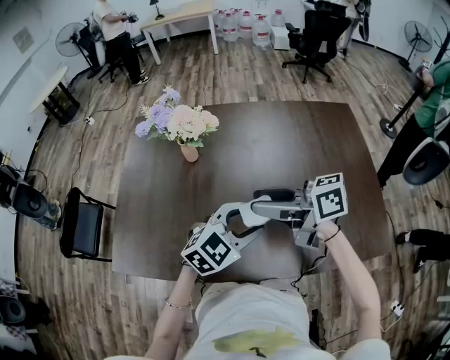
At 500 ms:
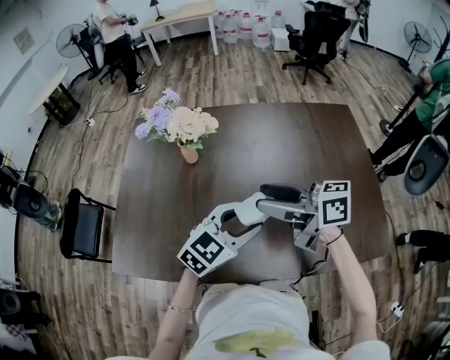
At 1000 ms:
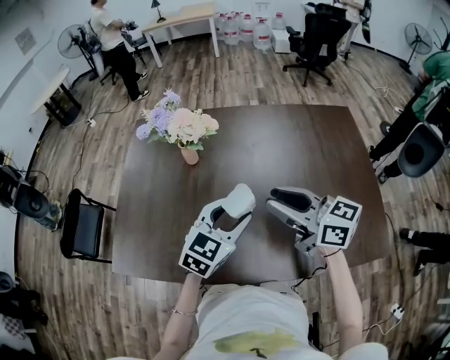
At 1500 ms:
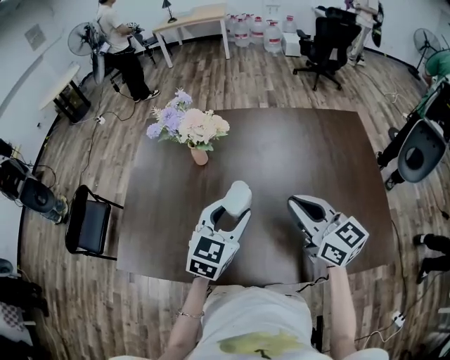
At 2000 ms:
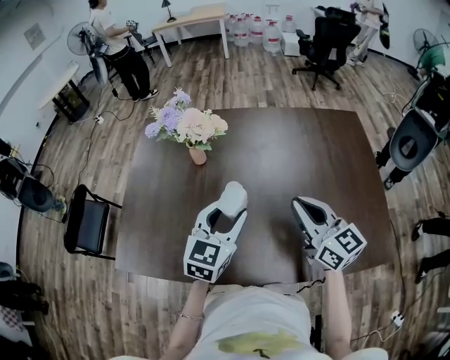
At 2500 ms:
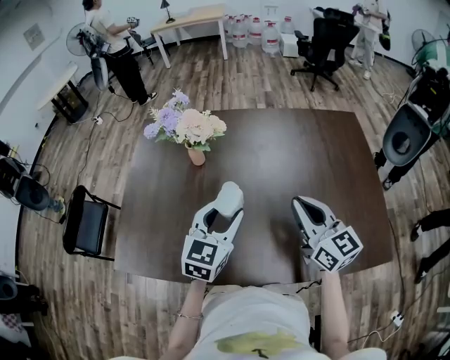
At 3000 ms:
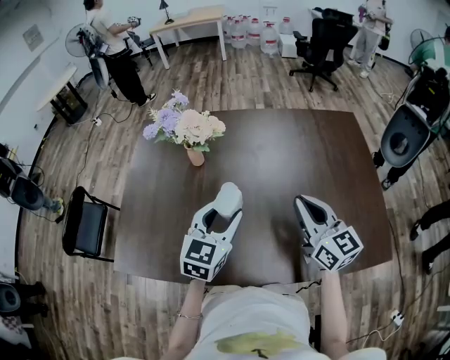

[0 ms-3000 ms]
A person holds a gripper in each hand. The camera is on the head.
0 ms to 1500 ms: The left gripper changes place by some 10 cm, and swivels about 30 degrees. The right gripper shifts by some 10 cm, turns by some 50 degrees, and closes up.
1500 ms to 3000 ms: The grippers move only a little.

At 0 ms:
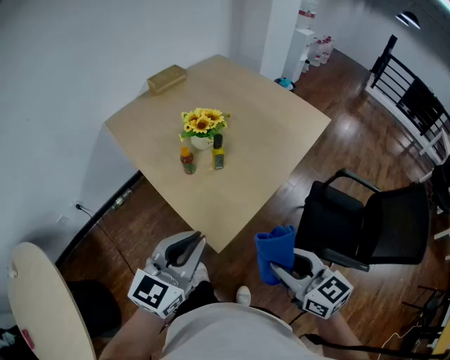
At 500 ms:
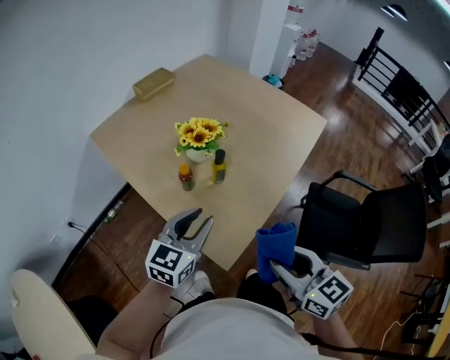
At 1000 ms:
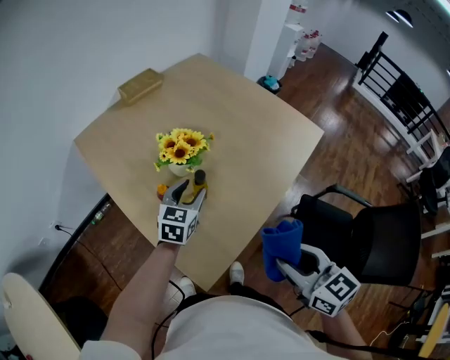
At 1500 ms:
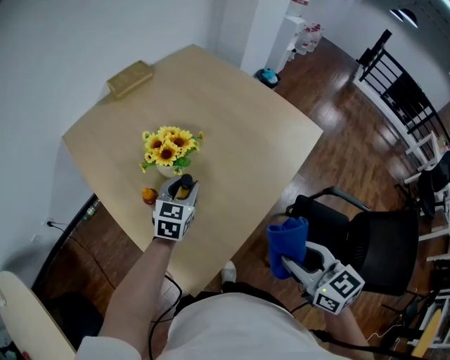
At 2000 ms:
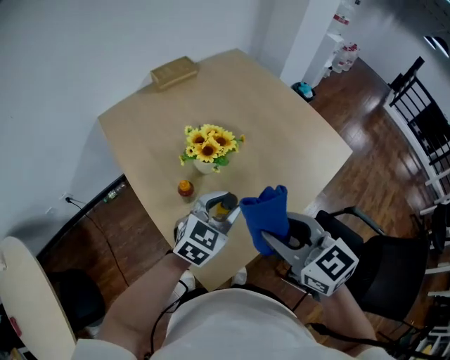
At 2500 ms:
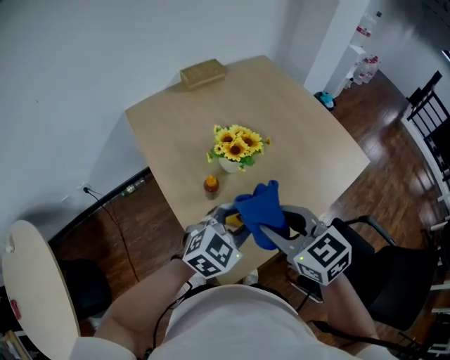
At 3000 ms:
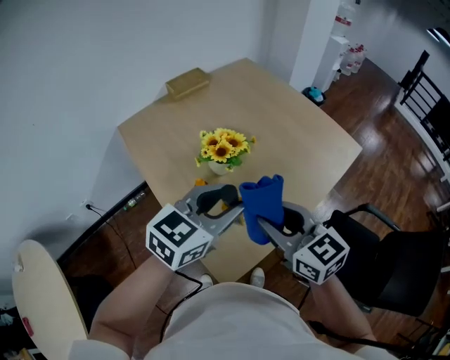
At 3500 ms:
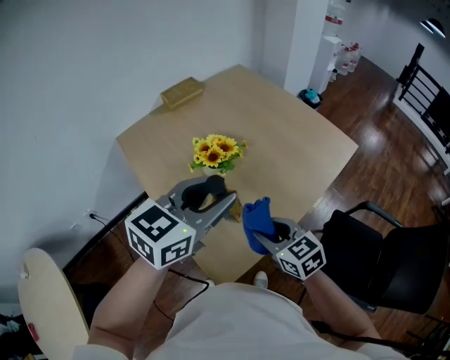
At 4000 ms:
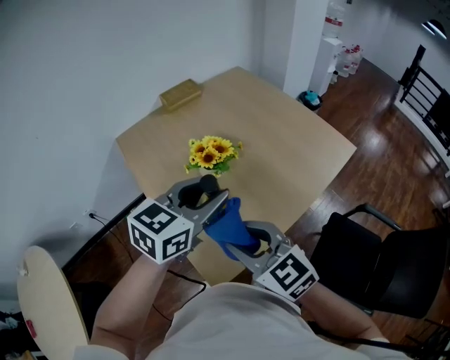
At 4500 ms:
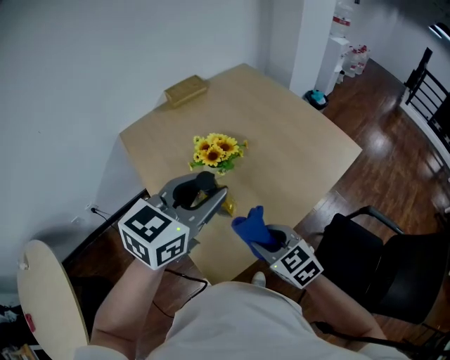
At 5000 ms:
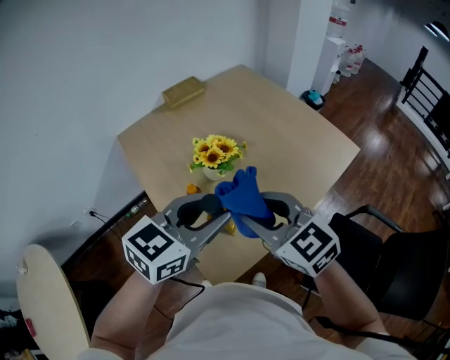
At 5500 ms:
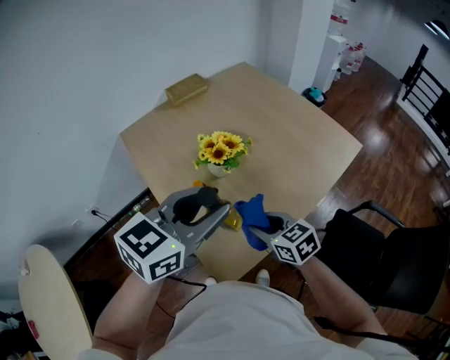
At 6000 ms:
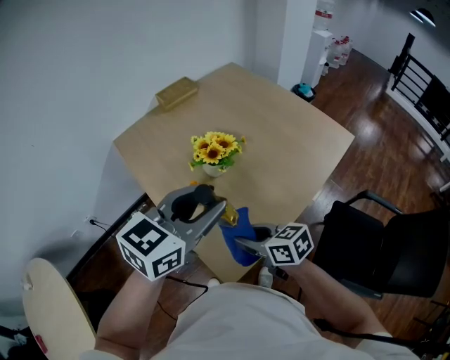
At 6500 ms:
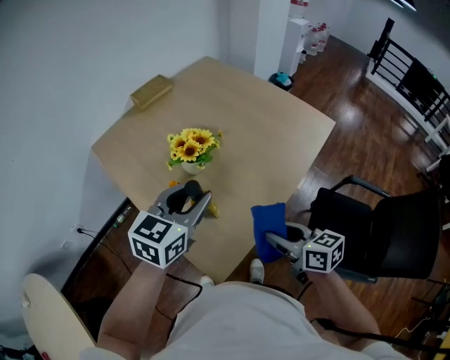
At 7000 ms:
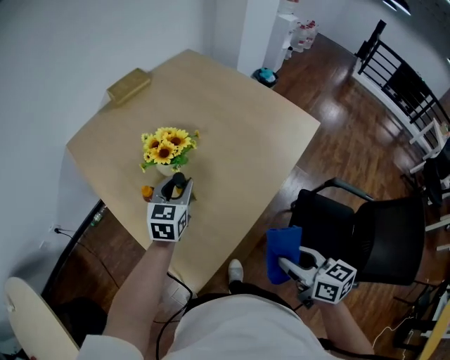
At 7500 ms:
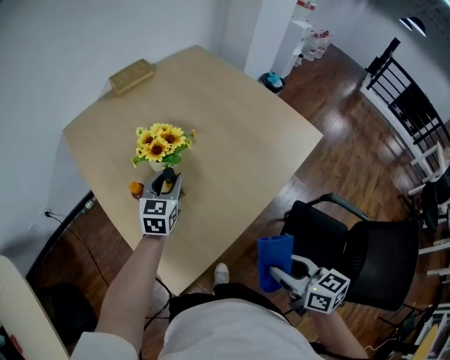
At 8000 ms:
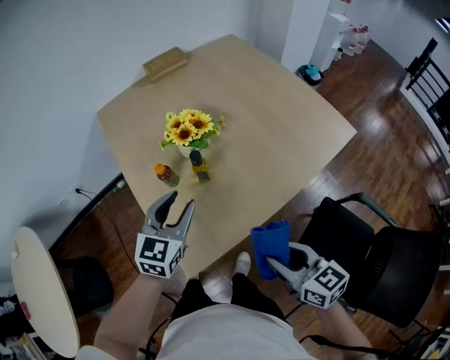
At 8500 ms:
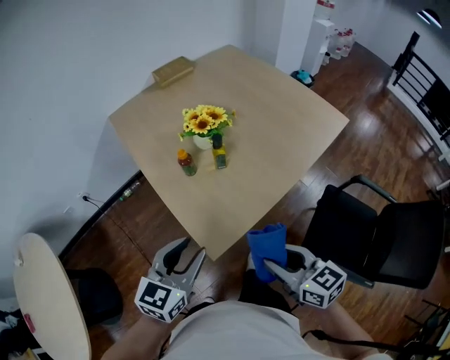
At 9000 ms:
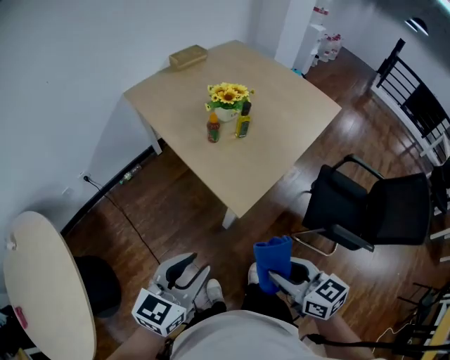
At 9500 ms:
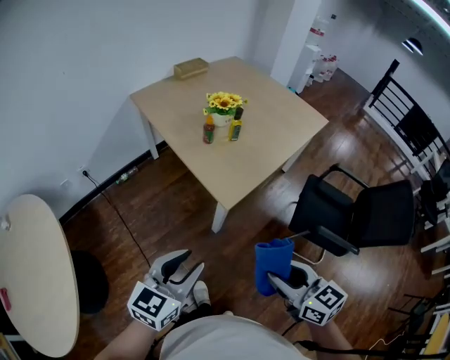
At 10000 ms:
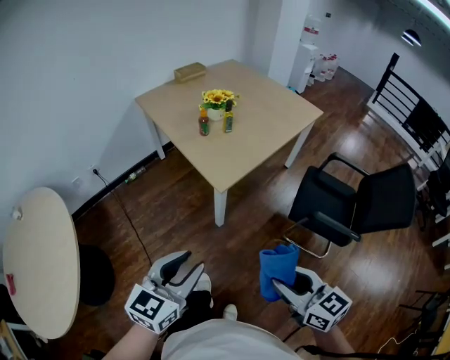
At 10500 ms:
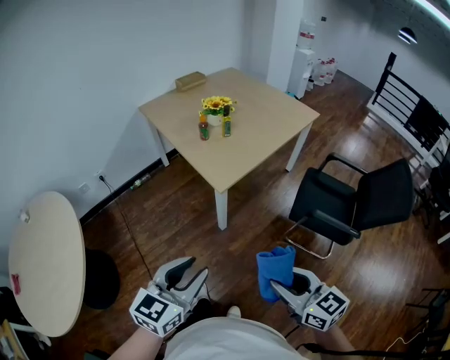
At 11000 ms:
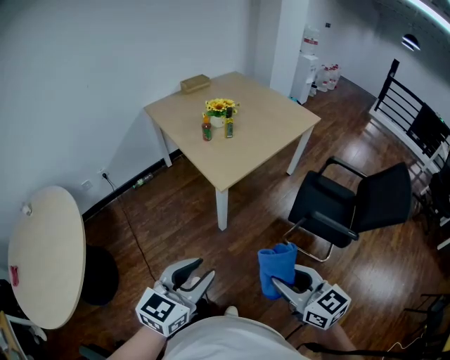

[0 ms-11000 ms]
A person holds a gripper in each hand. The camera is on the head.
0 ms to 2000 ms: Both grippers move forward, approximately 30 cm. The left gripper opens.
2000 ms to 3500 ms: The right gripper moves downward, approximately 10 cm; the left gripper is displaced upward by about 20 cm.
3500 ms to 5500 ms: The right gripper goes up and down, roughly 15 cm each way, reversing 3 times.
5500 ms to 7500 ms: The left gripper is displaced downward and forward by some 30 cm, and changes its angle by some 30 degrees. The right gripper moves to the right and backward, approximately 20 cm, and changes its angle by approximately 20 degrees.
7500 ms to 9000 ms: The right gripper shifts some 40 cm to the left and backward, while the left gripper goes approximately 60 cm backward and to the left, and turns by about 20 degrees.
9000 ms to 11000 ms: Both grippers move backward and to the right, some 30 cm.

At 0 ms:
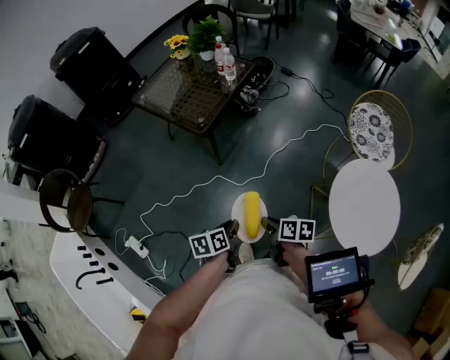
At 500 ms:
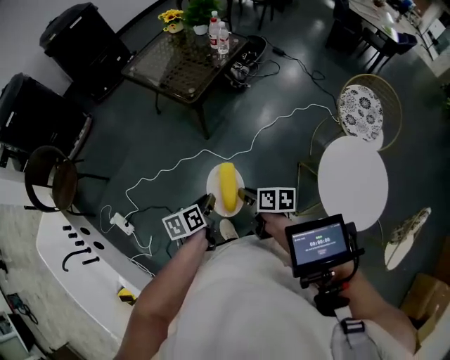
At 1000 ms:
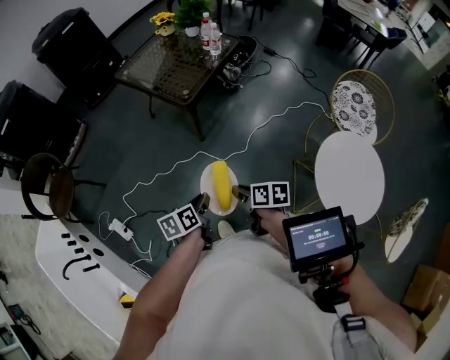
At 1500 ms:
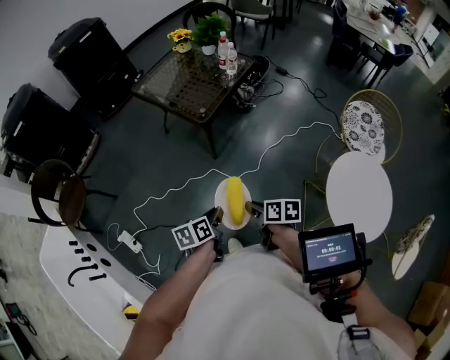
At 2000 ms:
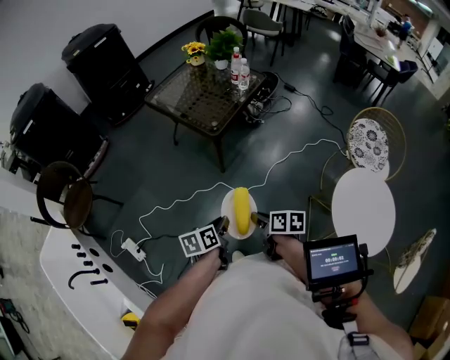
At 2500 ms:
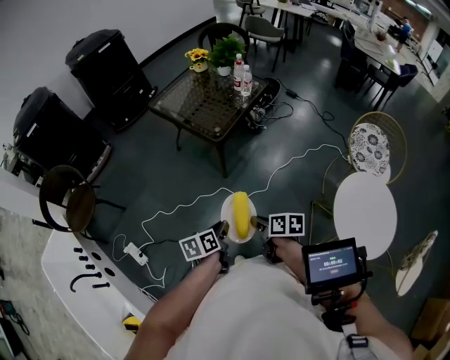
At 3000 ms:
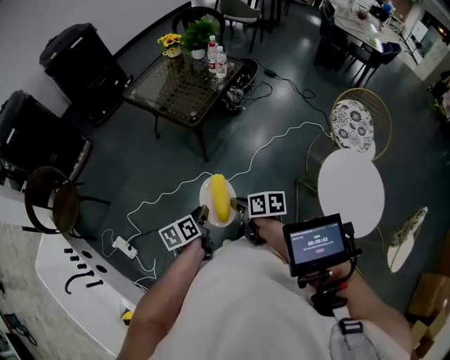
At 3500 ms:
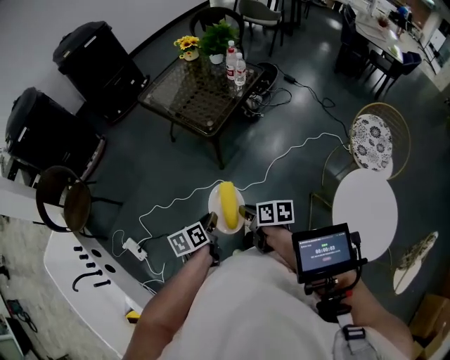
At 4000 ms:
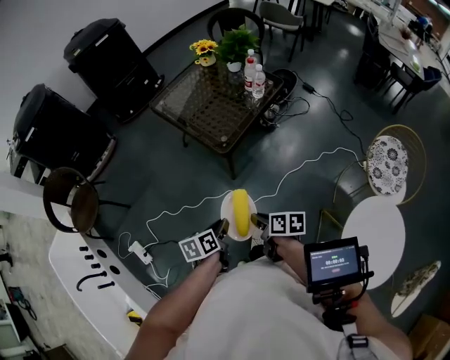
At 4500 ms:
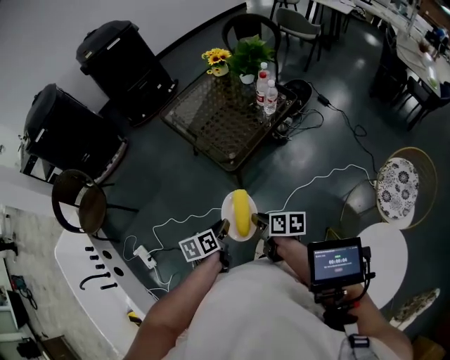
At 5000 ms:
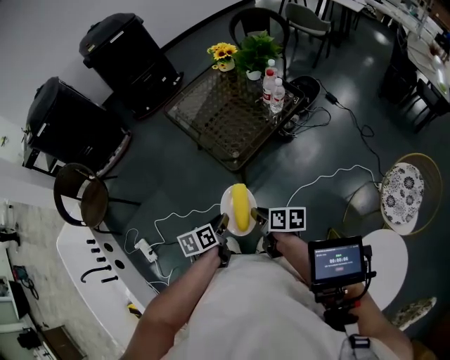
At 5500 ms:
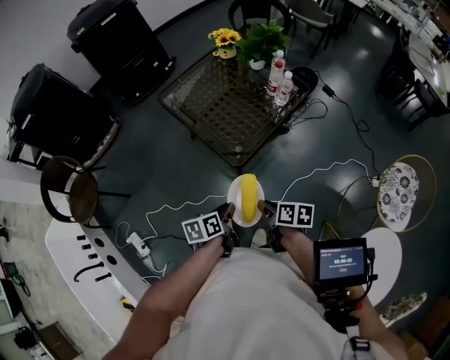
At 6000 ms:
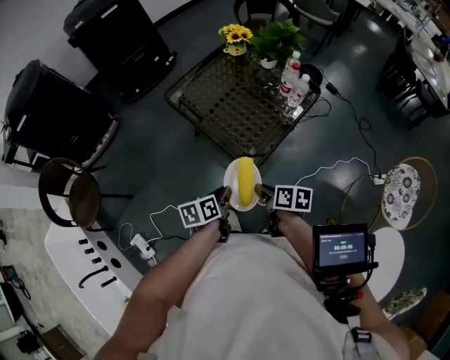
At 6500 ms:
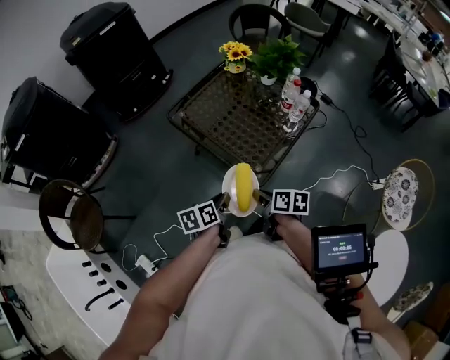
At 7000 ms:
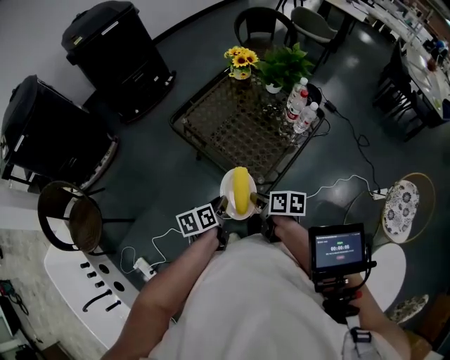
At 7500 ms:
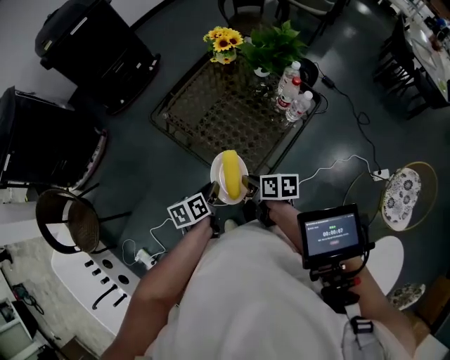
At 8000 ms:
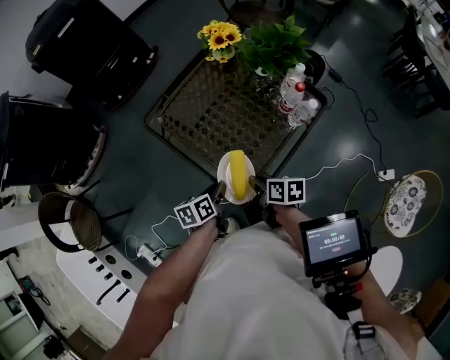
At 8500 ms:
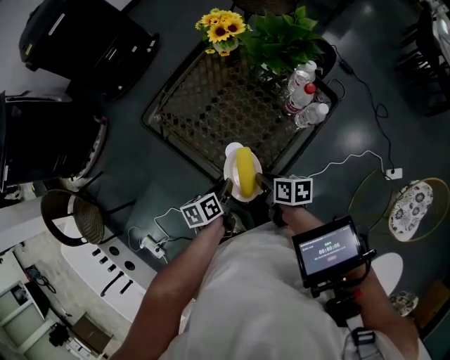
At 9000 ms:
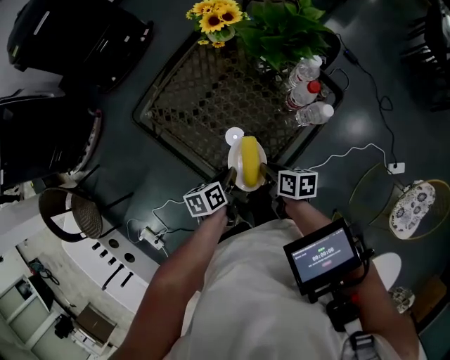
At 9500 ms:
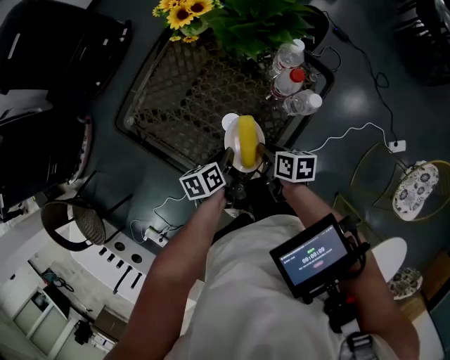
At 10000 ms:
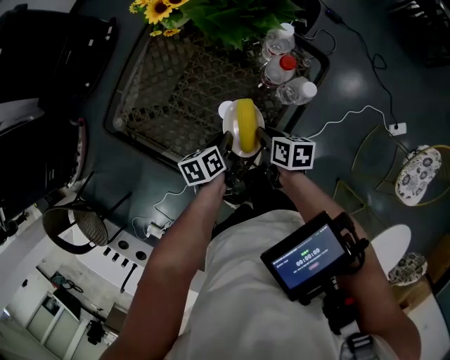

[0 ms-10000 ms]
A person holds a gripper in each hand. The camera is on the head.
0 ms to 2000 ms: The grippers both shift to the left by approximately 10 cm.
2000 ms to 4000 ms: The two grippers go roughly 15 cm forward.
4000 ms to 6000 ms: The two grippers go some 25 cm forward.
6000 ms to 8000 ms: The grippers both shift forward by approximately 20 cm.
8000 ms to 10000 ms: The right gripper shifts roughly 20 cm to the right, downward and forward. Meanwhile the left gripper shifts roughly 20 cm forward, to the right and downward.

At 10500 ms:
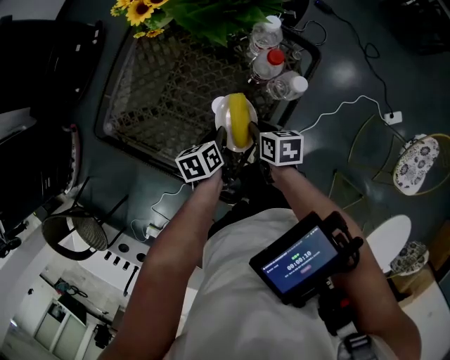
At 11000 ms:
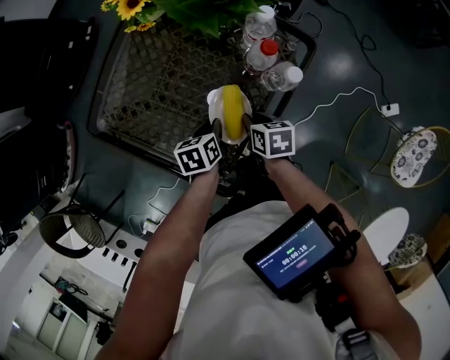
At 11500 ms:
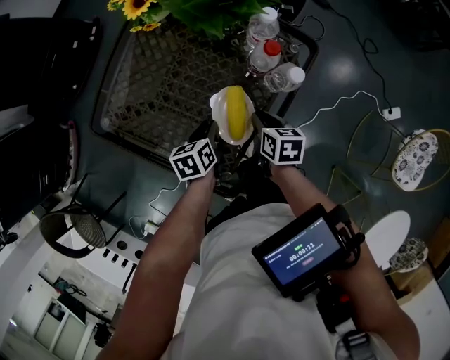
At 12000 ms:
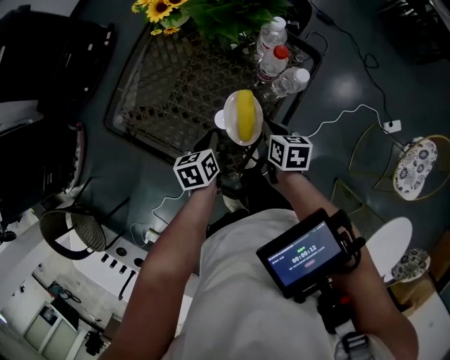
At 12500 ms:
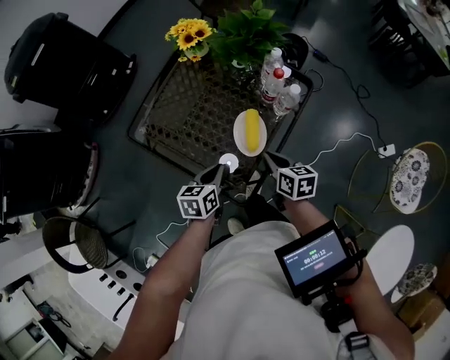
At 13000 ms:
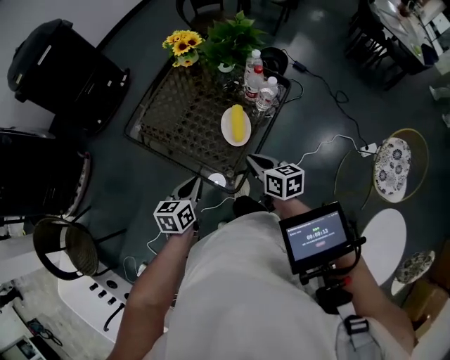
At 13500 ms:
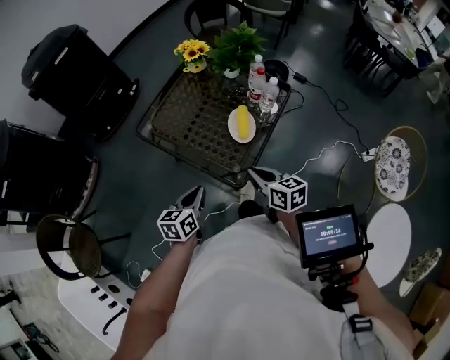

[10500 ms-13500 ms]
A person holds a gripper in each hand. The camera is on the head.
10500 ms to 12000 ms: The left gripper shifts by roughly 5 cm.
12000 ms to 13500 ms: The right gripper shifts about 30 cm backward, upward and to the left, and rotates some 30 degrees, while the left gripper moves backward and upward, approximately 30 cm, and turns by some 20 degrees.
